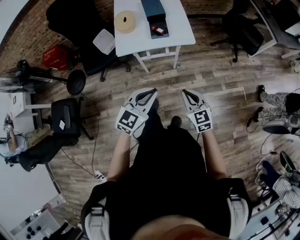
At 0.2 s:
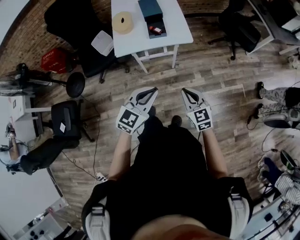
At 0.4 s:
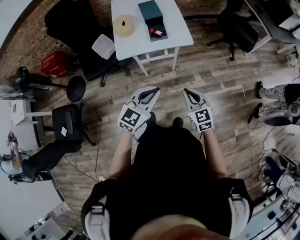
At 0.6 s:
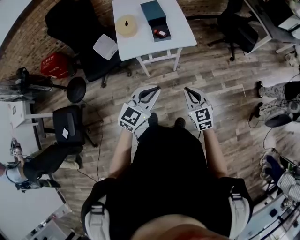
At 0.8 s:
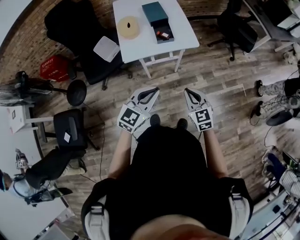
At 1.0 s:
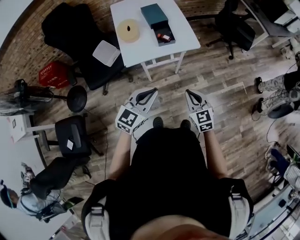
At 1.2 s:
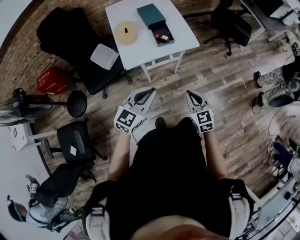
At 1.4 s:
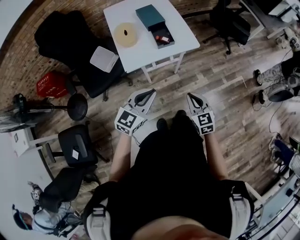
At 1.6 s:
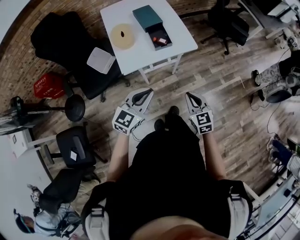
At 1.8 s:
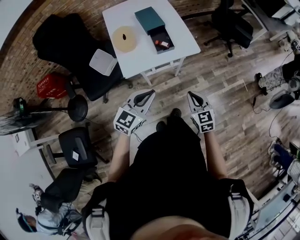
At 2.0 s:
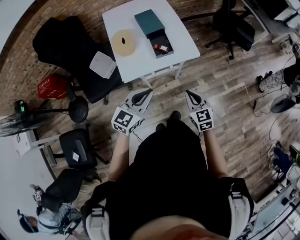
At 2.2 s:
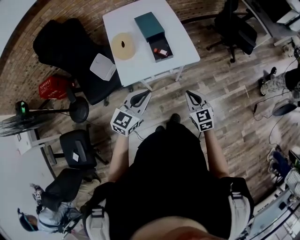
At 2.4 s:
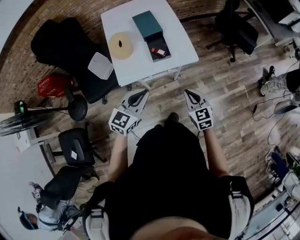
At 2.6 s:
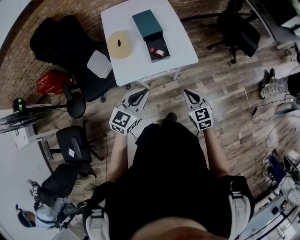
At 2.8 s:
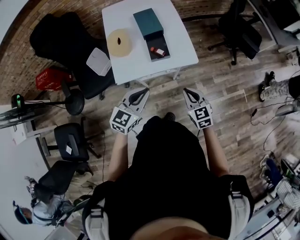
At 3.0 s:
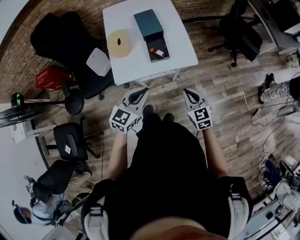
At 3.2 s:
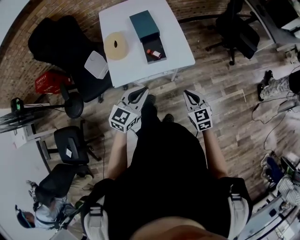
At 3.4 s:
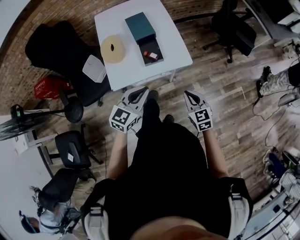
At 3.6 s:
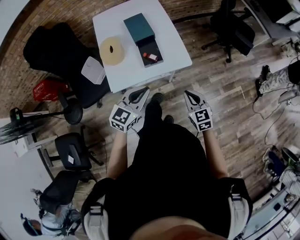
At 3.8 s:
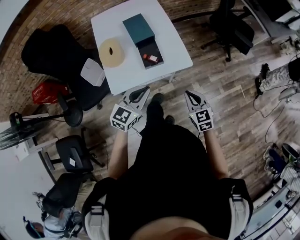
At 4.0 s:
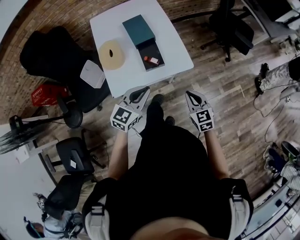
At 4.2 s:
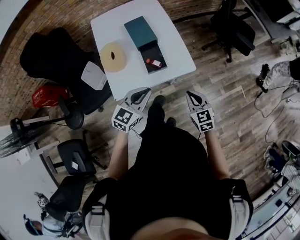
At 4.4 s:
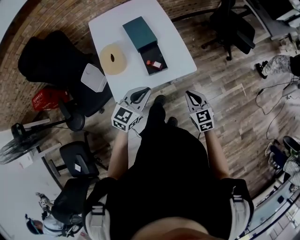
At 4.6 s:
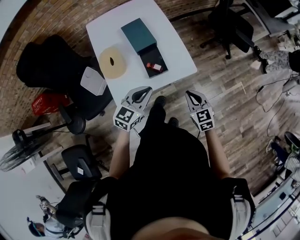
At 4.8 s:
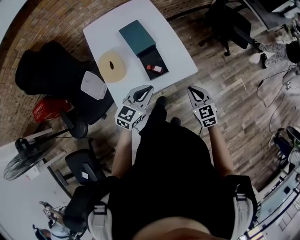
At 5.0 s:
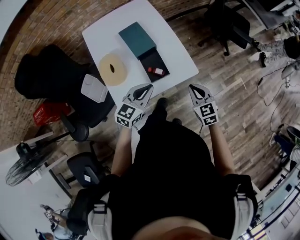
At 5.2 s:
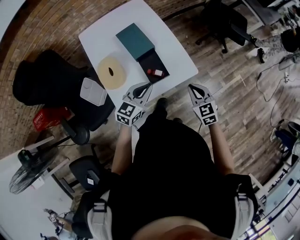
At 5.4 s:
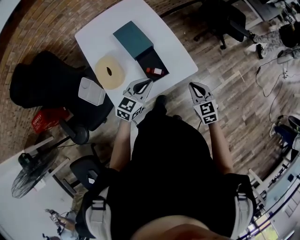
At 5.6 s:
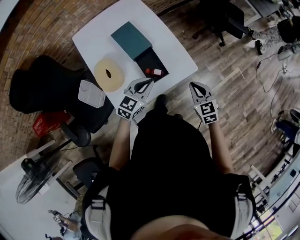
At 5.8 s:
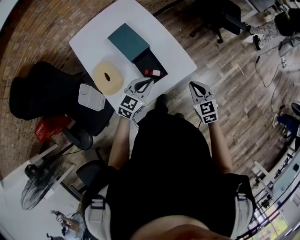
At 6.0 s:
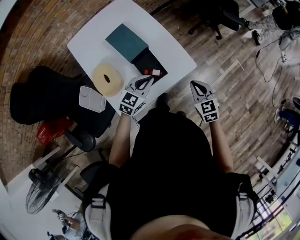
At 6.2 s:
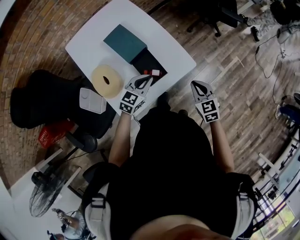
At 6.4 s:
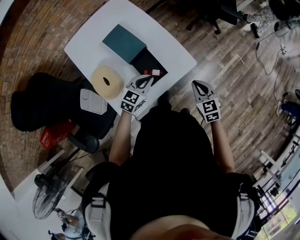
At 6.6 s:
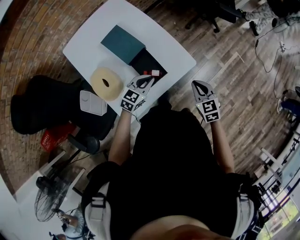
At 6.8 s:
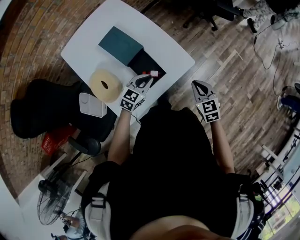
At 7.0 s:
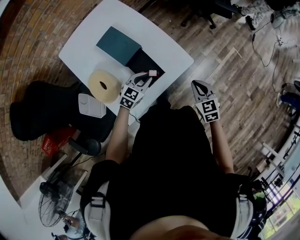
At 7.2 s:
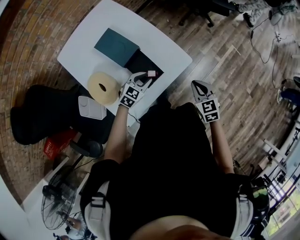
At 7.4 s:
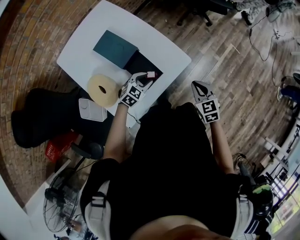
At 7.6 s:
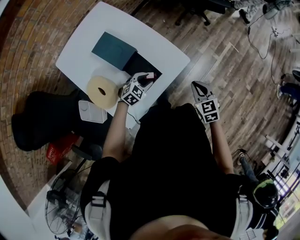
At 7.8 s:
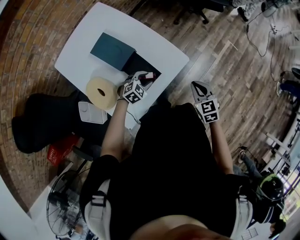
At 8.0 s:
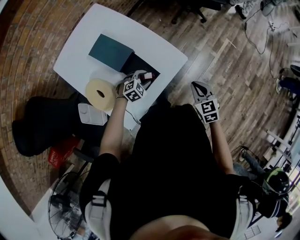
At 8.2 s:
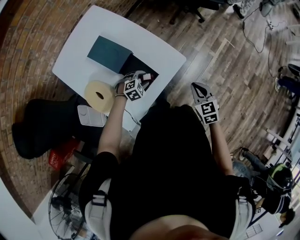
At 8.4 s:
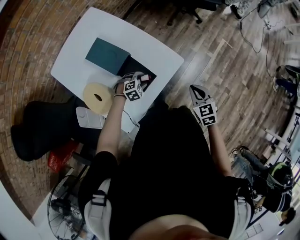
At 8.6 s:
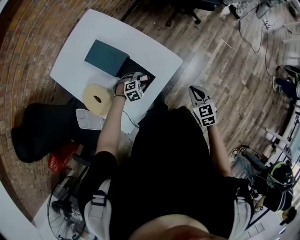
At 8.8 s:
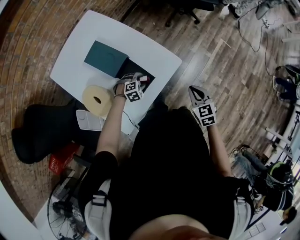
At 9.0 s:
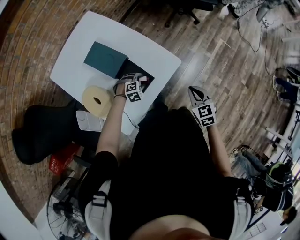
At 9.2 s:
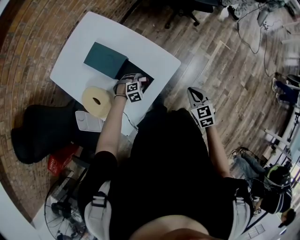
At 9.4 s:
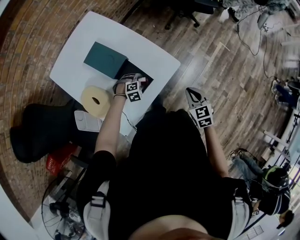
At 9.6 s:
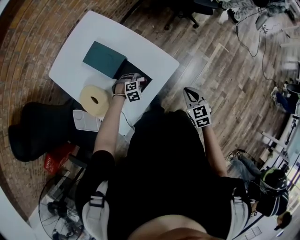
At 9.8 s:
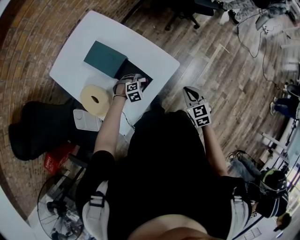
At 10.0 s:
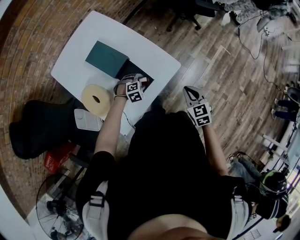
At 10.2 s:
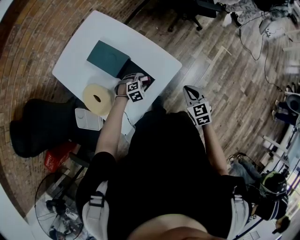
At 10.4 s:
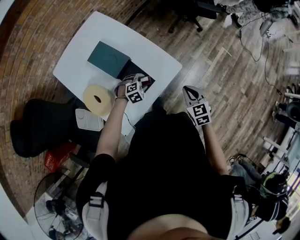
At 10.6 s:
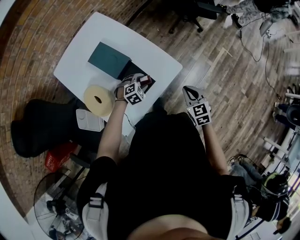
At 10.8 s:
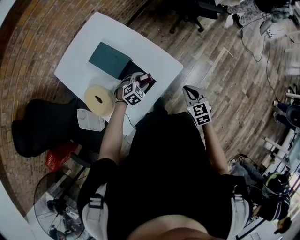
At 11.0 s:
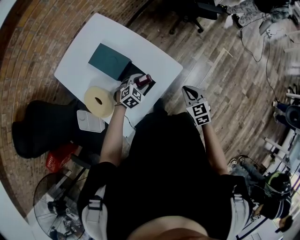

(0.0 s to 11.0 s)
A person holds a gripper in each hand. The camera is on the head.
0.0 s - 1.6 s: The two grippers go roughly 15 cm to the left.
1.6 s - 3.2 s: Both grippers move forward and to the right, about 20 cm.
3.2 s - 4.8 s: The two grippers go some 15 cm forward.
4.8 s - 6.2 s: The left gripper goes some 15 cm forward and downward; the right gripper shifts by roughly 5 cm.
6.2 s - 7.8 s: The left gripper shifts roughly 15 cm downward, swivels some 40 degrees, and opens its fingers.
7.8 s - 9.4 s: The left gripper is displaced downward by some 5 cm, and changes its angle by roughly 30 degrees.
9.4 s - 11.0 s: The left gripper moves upward, approximately 10 cm, and rotates about 30 degrees.

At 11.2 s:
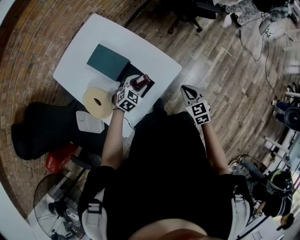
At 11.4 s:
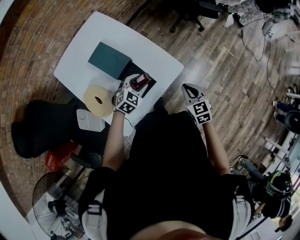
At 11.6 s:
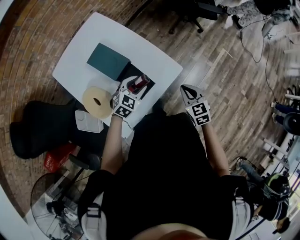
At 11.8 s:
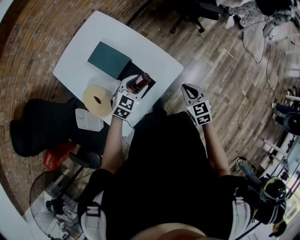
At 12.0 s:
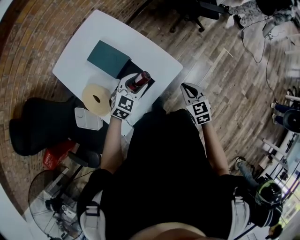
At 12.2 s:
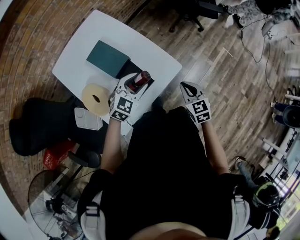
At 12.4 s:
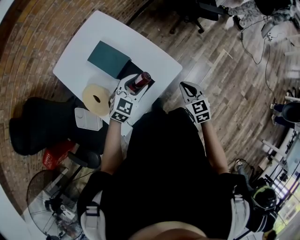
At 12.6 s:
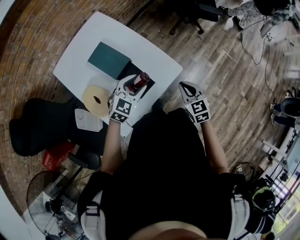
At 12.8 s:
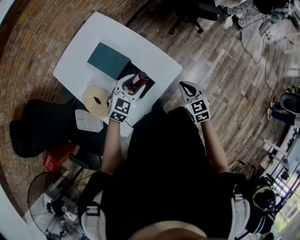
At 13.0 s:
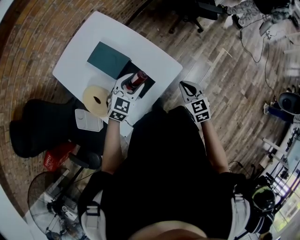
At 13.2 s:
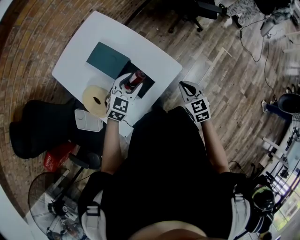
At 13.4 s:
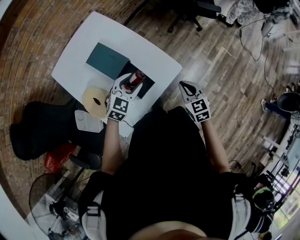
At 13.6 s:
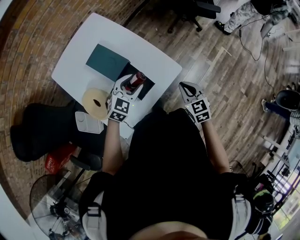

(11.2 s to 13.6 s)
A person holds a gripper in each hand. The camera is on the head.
11.2 s - 12.4 s: The left gripper heads upward, covering some 10 cm.
12.4 s - 13.6 s: The grippers move only a little.

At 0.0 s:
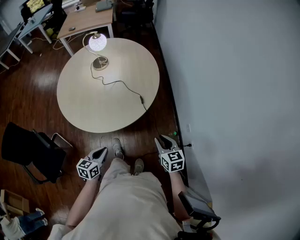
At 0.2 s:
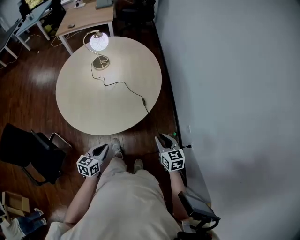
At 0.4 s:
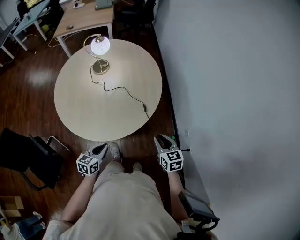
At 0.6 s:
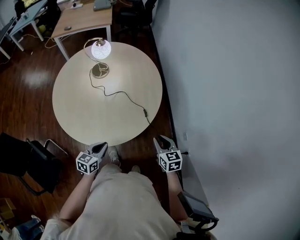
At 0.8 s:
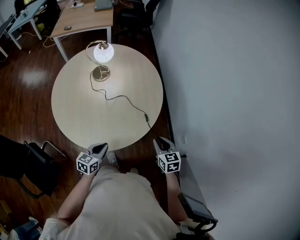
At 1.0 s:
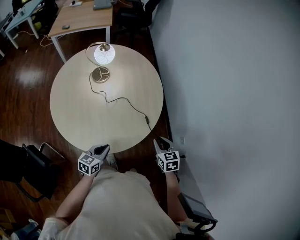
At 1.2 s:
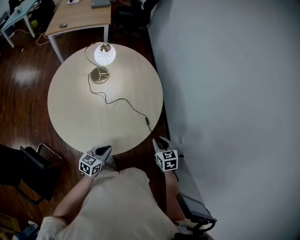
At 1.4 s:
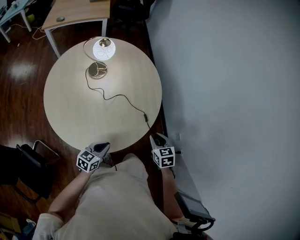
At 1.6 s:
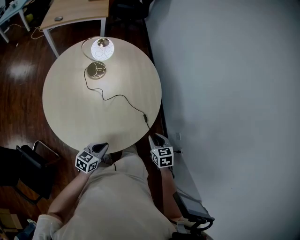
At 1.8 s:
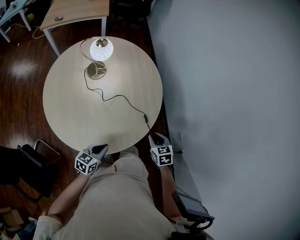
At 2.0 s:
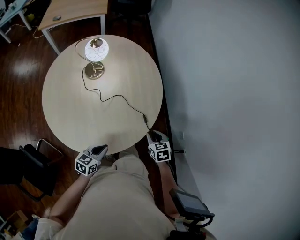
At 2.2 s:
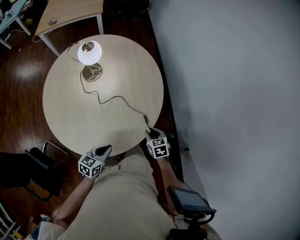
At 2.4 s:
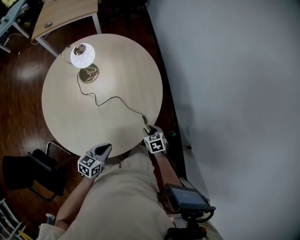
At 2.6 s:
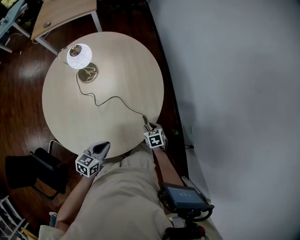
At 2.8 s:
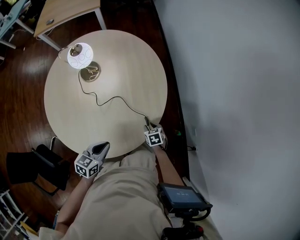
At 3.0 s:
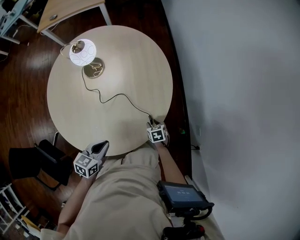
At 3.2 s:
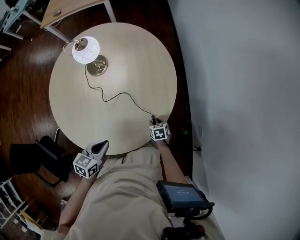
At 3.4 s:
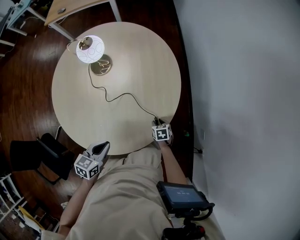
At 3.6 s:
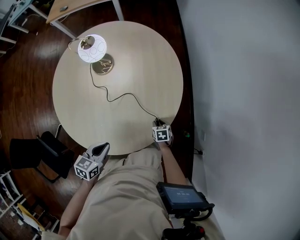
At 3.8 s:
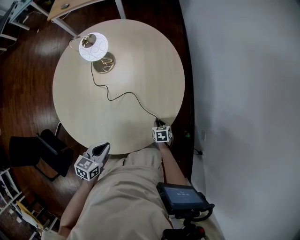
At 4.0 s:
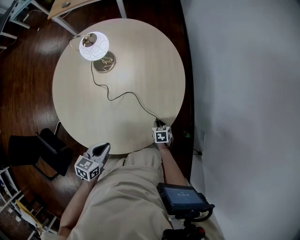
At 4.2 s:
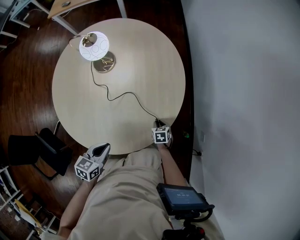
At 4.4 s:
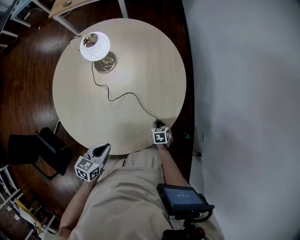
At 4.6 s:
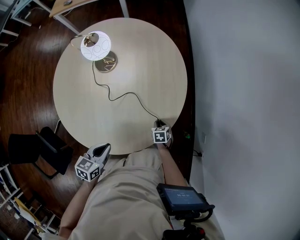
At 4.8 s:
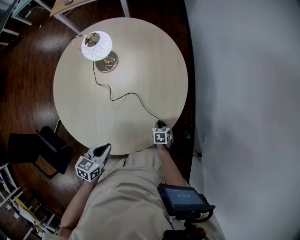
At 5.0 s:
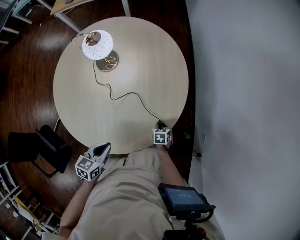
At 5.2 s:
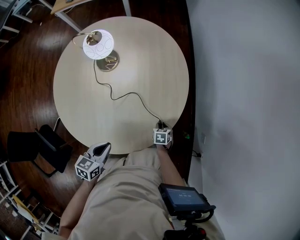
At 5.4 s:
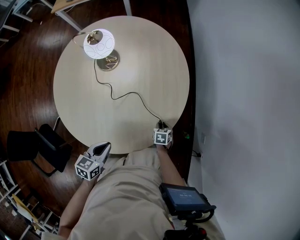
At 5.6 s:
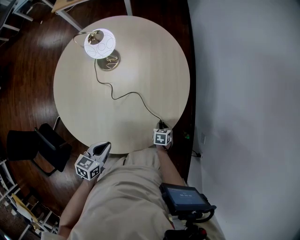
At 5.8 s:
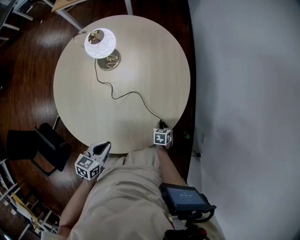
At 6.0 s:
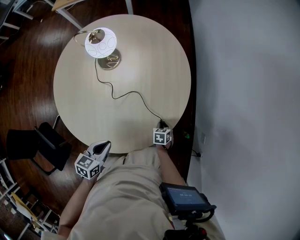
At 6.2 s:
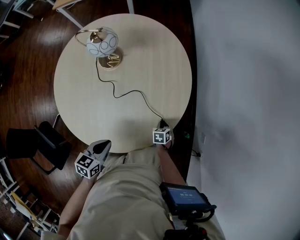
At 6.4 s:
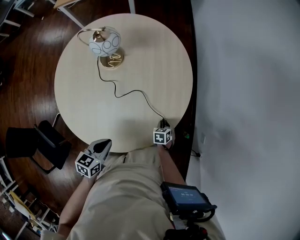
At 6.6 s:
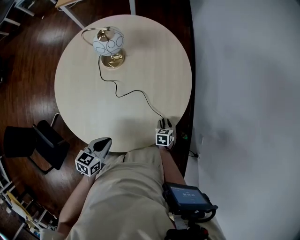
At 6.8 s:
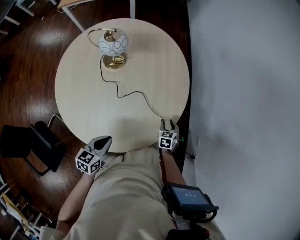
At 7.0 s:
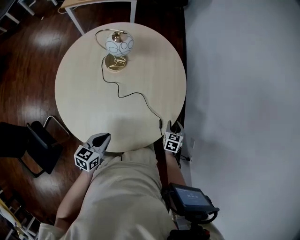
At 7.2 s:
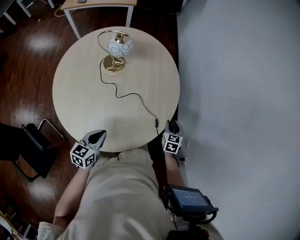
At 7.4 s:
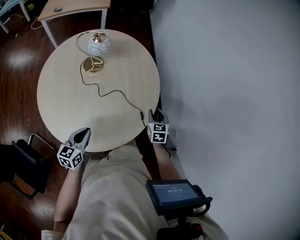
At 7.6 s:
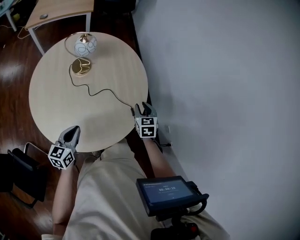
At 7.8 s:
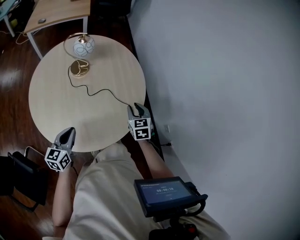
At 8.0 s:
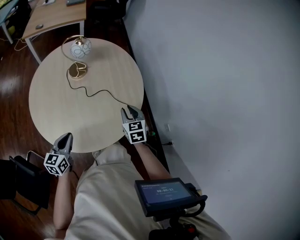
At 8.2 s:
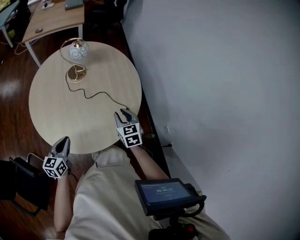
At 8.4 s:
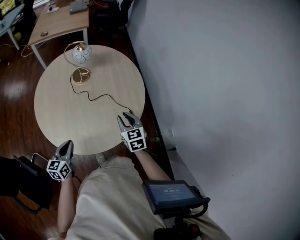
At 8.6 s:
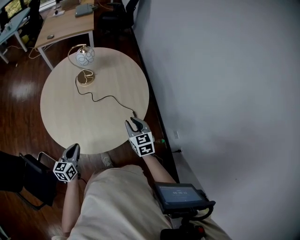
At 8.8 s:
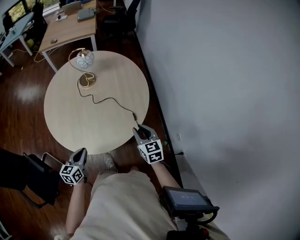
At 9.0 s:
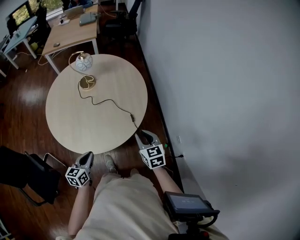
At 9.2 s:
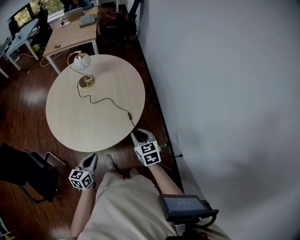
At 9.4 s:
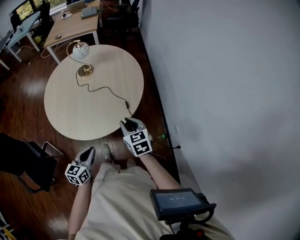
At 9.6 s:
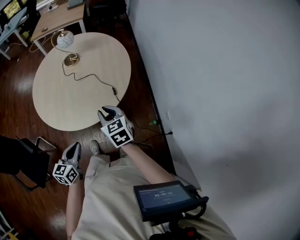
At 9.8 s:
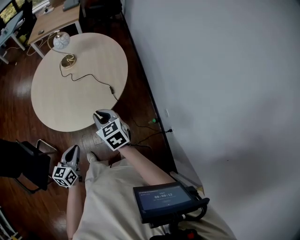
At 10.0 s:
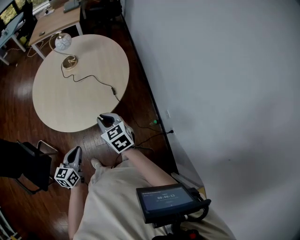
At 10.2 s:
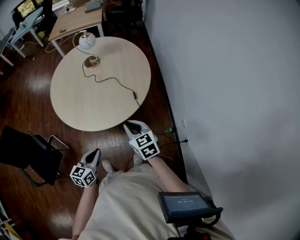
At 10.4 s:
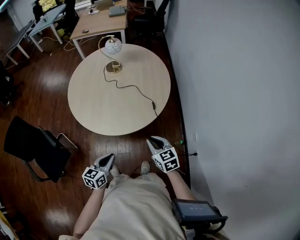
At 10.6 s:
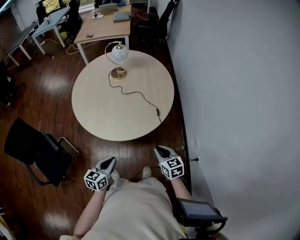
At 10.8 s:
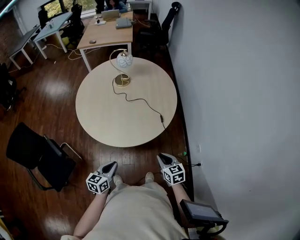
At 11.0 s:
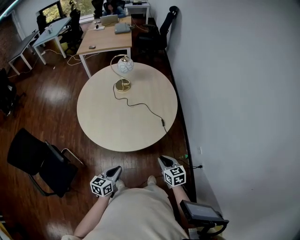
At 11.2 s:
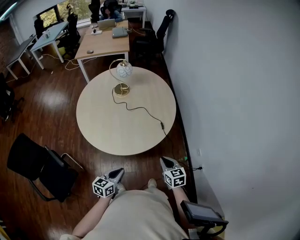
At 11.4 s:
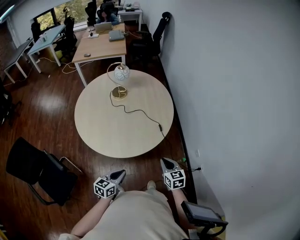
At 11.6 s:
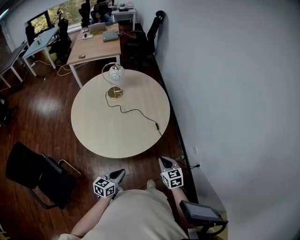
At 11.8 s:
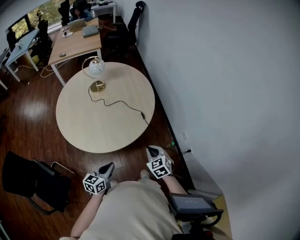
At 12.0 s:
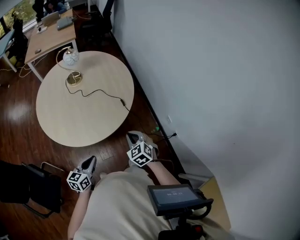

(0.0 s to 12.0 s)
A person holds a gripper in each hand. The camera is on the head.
0.0 s - 1.6 s: The right gripper is displaced to the left and forward by some 25 cm, and changes its angle by roughly 20 degrees; the left gripper goes roughly 20 cm forward and to the left, and swivels about 20 degrees.
1.6 s - 3.0 s: The left gripper is displaced forward by some 10 cm. The right gripper travels downward and forward by roughly 25 cm, and swivels some 20 degrees.
3.0 s - 6.0 s: The grippers make only small movements.
6.0 s - 7.6 s: The right gripper moves upward, about 30 cm, and angles its fingers upward, by approximately 30 degrees. The left gripper is displaced to the left and upward by roughly 10 cm, and changes its angle by some 30 degrees.
7.6 s - 9.0 s: The right gripper is displaced backward by about 20 cm, and turns by about 20 degrees. The left gripper heads backward and to the right, covering some 20 cm.
9.0 s - 10.4 s: The left gripper shifts about 15 cm backward. Meanwhile the right gripper travels backward and to the left by some 15 cm.
10.4 s - 12.0 s: The right gripper changes its angle by roughly 30 degrees, while the left gripper moves to the left, roughly 5 cm.
